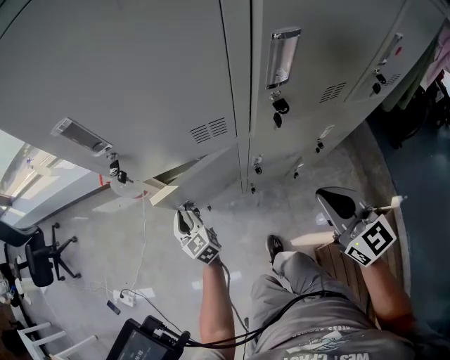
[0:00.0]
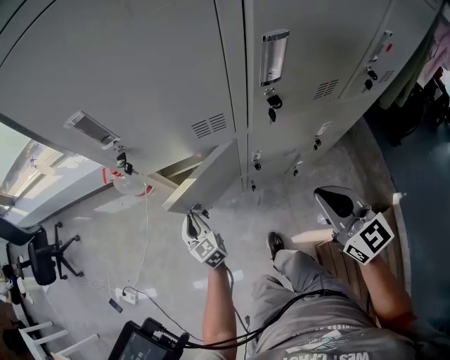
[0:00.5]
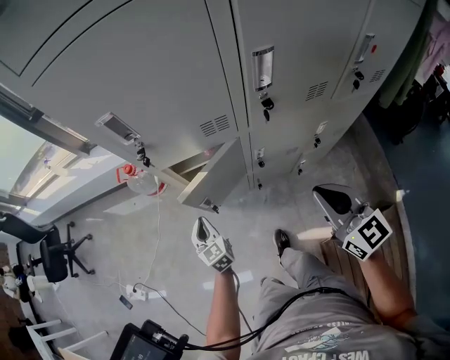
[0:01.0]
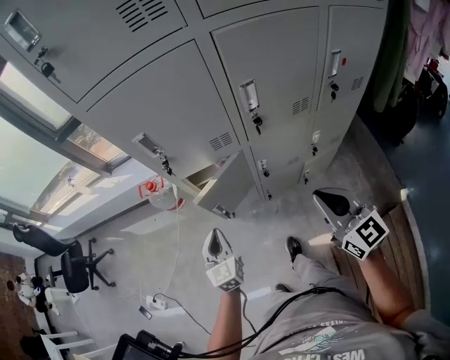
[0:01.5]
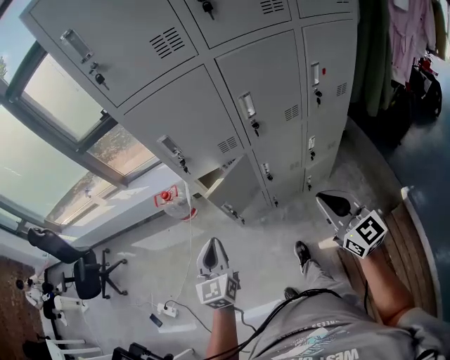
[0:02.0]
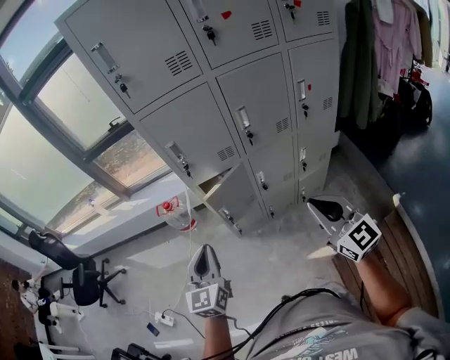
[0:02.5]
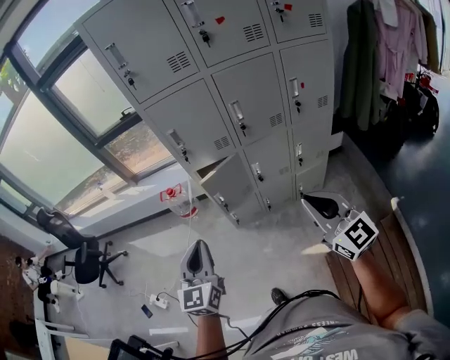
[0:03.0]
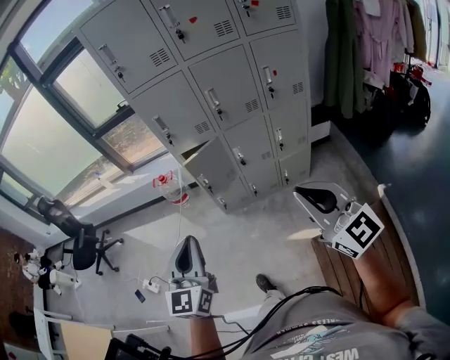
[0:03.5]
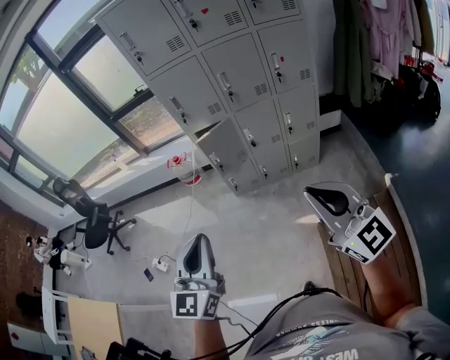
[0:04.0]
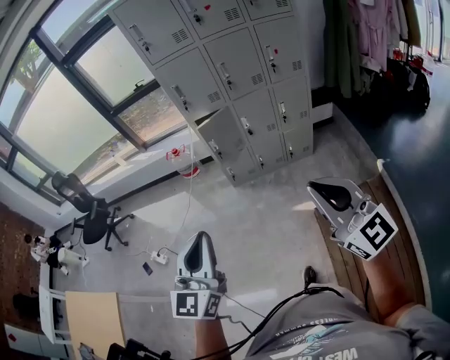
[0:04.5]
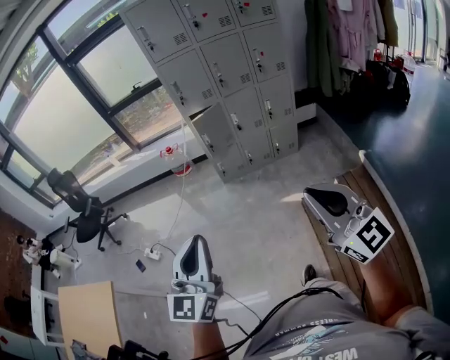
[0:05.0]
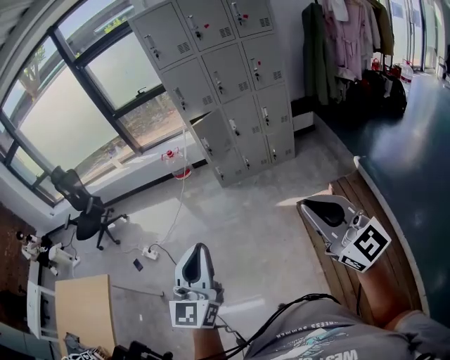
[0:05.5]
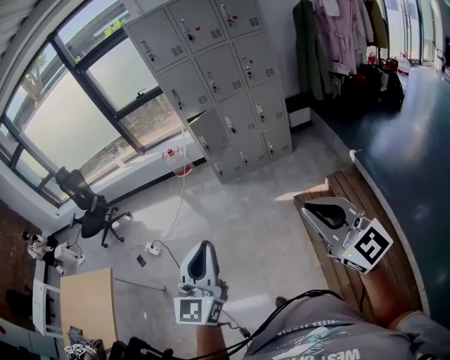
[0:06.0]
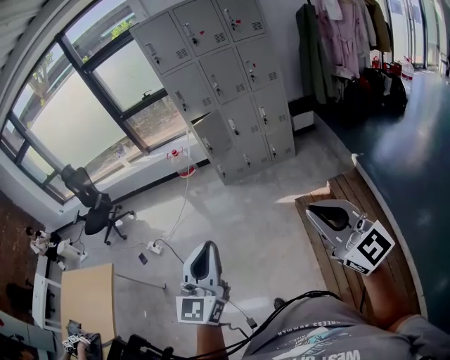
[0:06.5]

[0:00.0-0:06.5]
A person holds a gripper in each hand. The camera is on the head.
0:00.0 to 0:02.0: The left gripper travels upward and backward by approximately 40 cm, turns by approximately 30 degrees, and closes its fingers. Meanwhile the right gripper heads backward and upward, covering about 25 cm.
0:02.0 to 0:04.5: The pair of grippers is taken backward, about 60 cm.
0:04.5 to 0:06.5: The grippers both shift backward by about 35 cm.

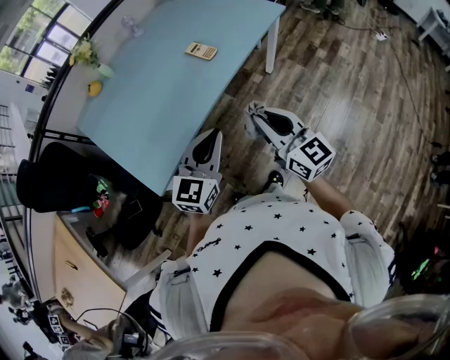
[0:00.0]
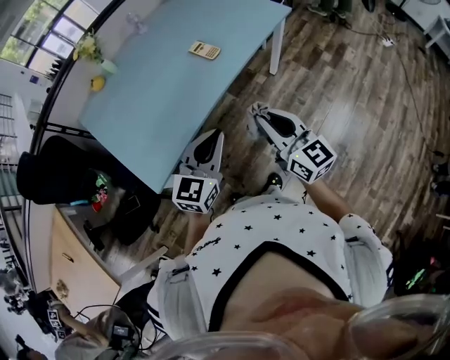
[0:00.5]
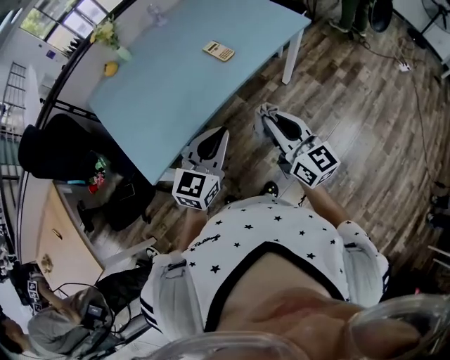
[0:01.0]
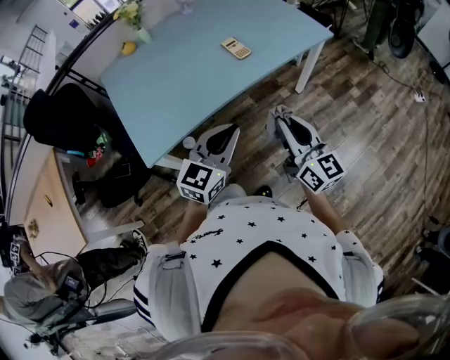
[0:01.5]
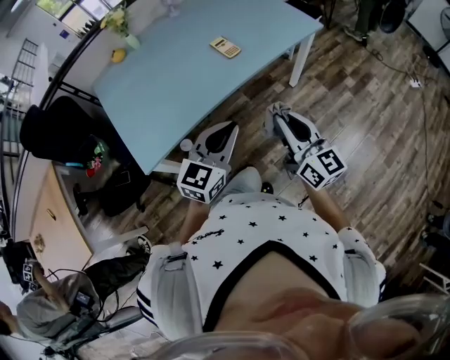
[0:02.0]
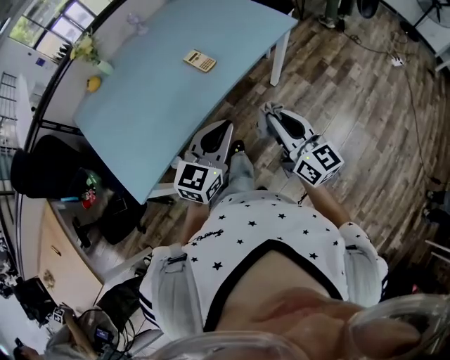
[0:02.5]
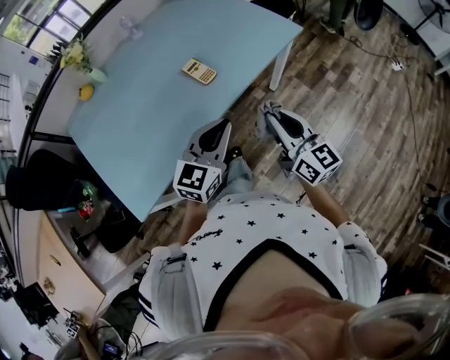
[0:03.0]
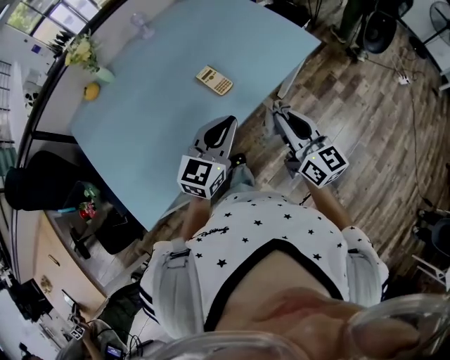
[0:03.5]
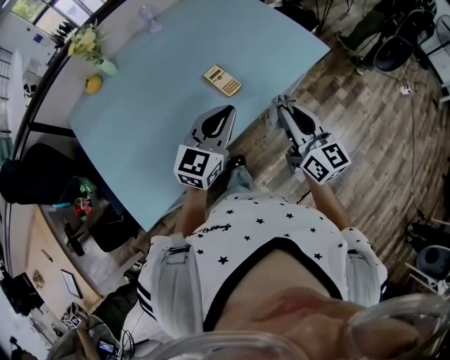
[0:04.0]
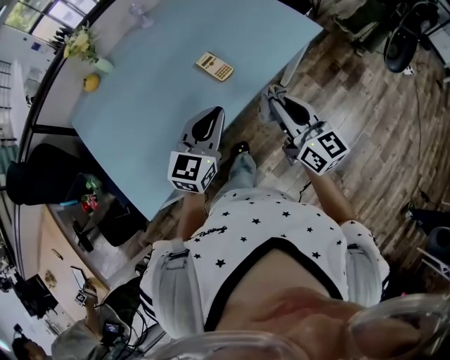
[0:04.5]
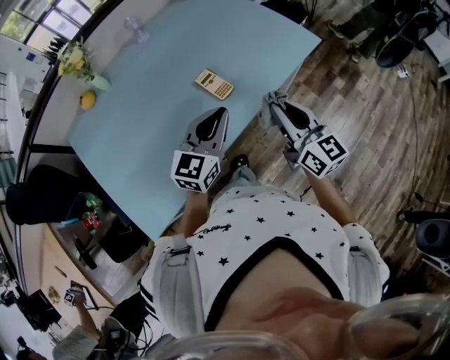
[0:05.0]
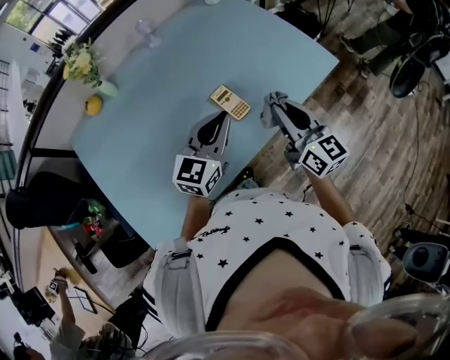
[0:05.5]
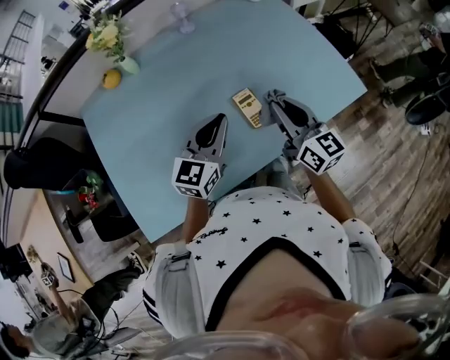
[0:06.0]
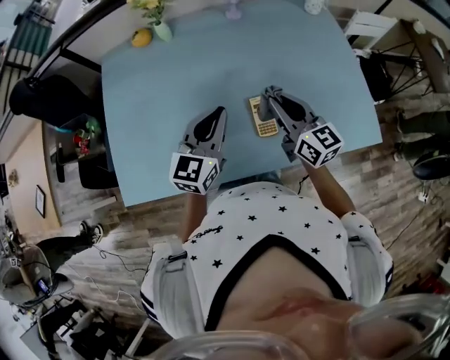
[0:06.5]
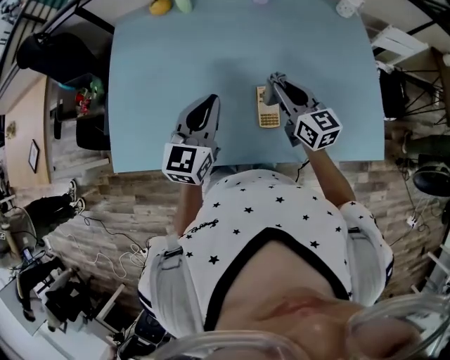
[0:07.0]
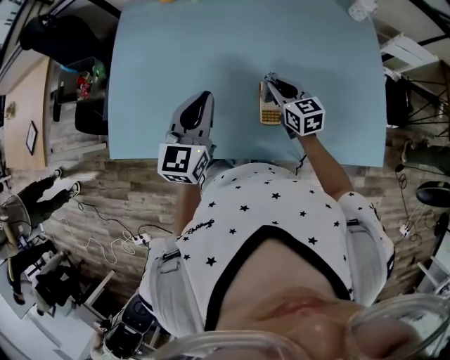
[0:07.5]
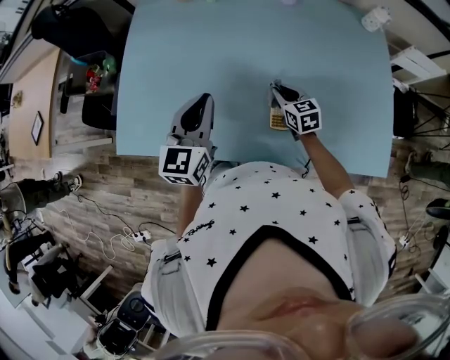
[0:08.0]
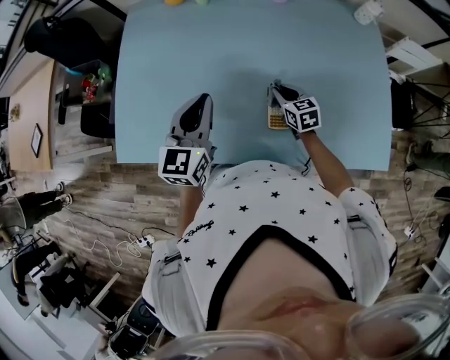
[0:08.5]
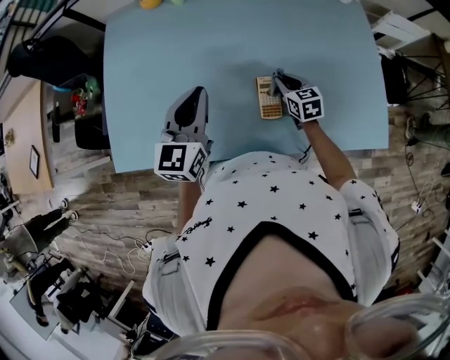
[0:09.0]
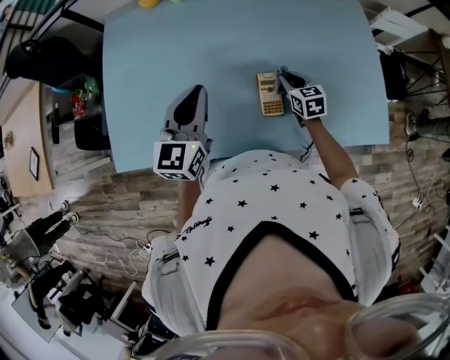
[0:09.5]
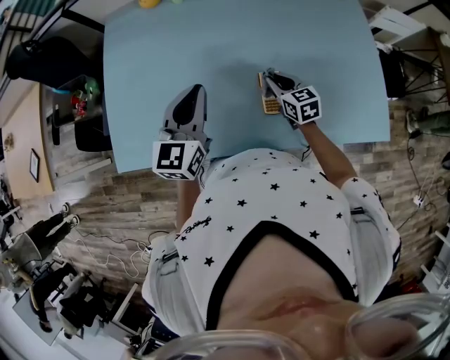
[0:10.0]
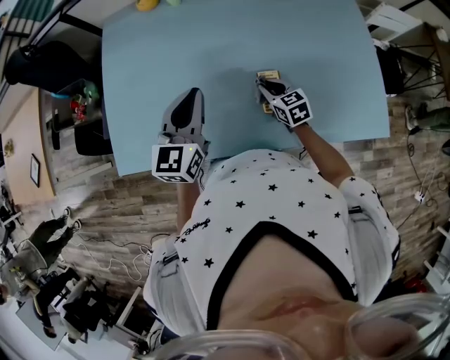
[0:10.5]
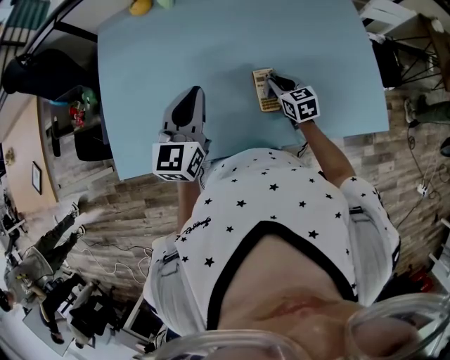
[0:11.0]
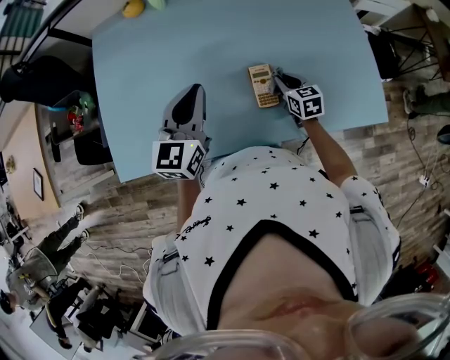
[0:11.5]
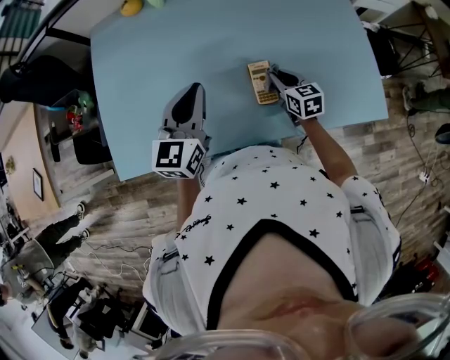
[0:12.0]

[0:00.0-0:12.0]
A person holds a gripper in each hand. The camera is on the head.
0:00.0 to 0:02.0: Both grippers travel together to the right, about 5 cm.
0:02.0 to 0:04.0: The two grippers go about 25 cm forward.
0:04.0 to 0:06.0: Both grippers travel together forward and to the left, roughly 15 cm.
0:06.0 to 0:08.0: The right gripper travels downward by some 20 cm, and tilts its fingers approximately 30 degrees downward, while the left gripper changes place by approximately 10 cm, and swivels some 40 degrees.
0:10.0 to 0:12.0: The right gripper shifts by about 5 cm.

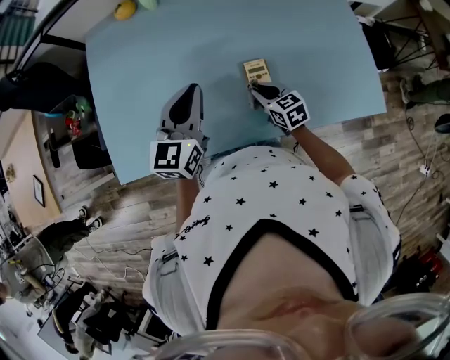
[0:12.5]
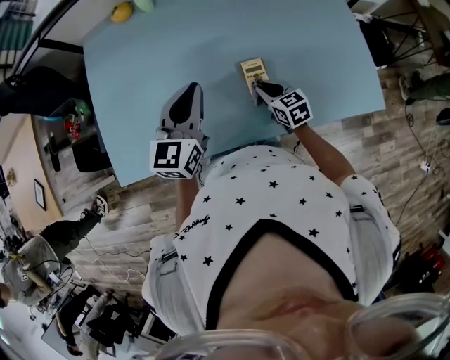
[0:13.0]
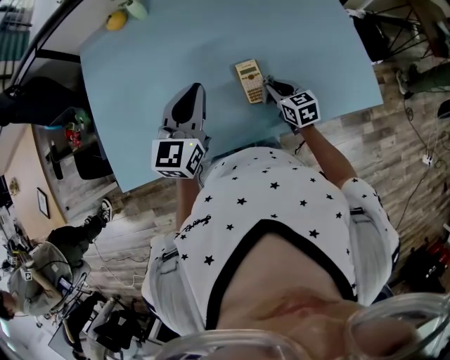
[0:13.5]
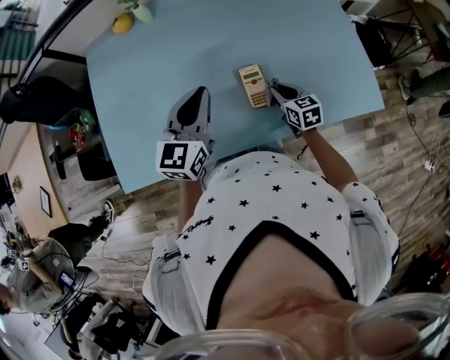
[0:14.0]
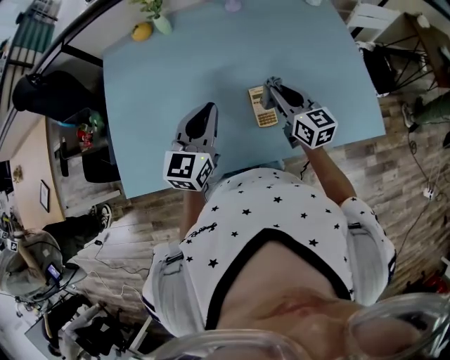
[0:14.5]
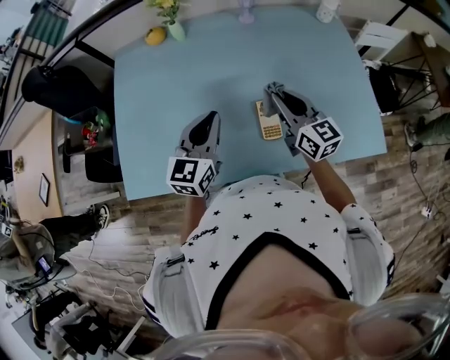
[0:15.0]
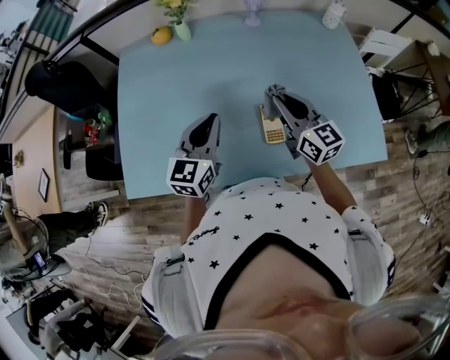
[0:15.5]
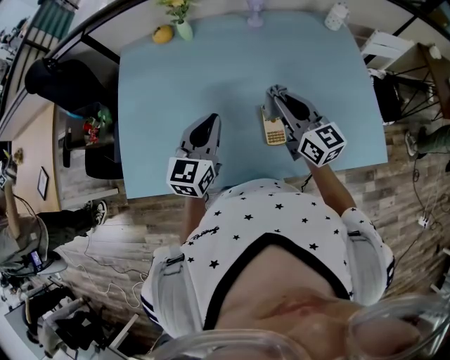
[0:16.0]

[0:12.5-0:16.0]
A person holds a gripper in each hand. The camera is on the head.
0:12.5 to 0:14.5: The right gripper moves upward, roughly 15 cm, and swivels approximately 30 degrees.
0:14.5 to 0:16.0: The right gripper heads upward, covering approximately 5 cm.

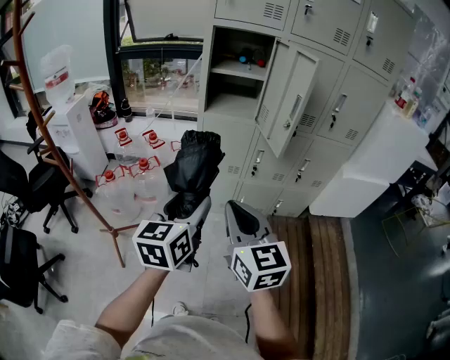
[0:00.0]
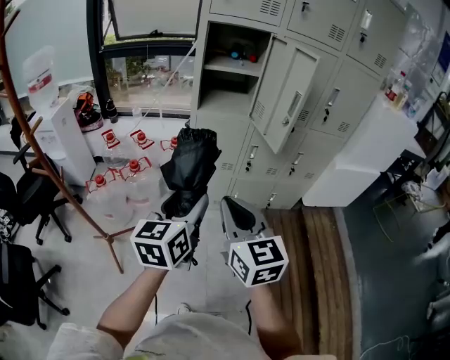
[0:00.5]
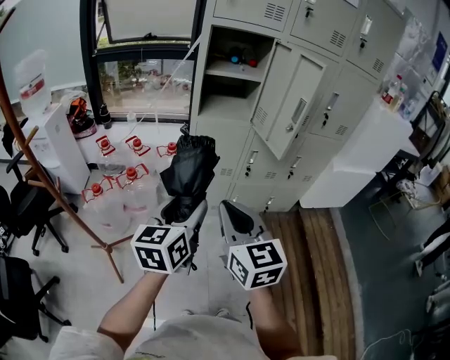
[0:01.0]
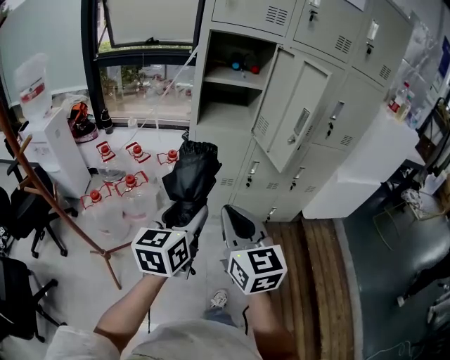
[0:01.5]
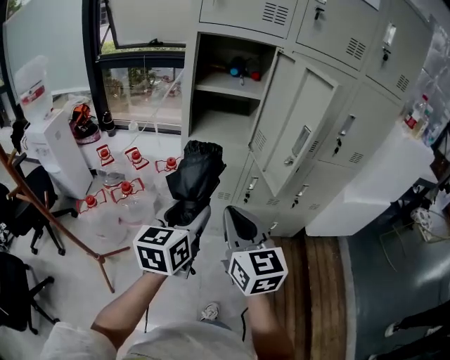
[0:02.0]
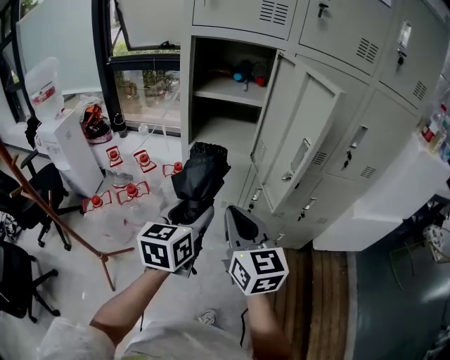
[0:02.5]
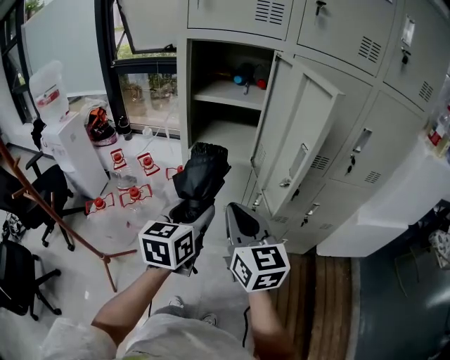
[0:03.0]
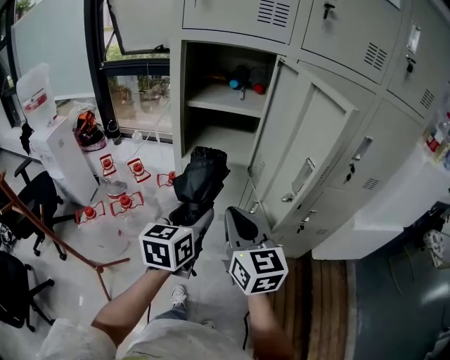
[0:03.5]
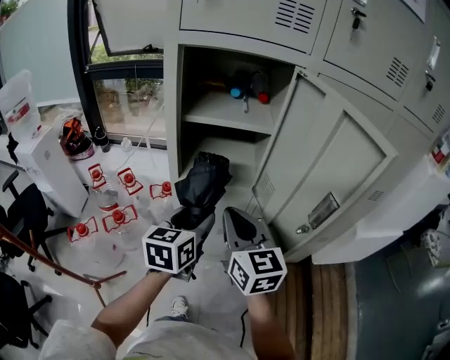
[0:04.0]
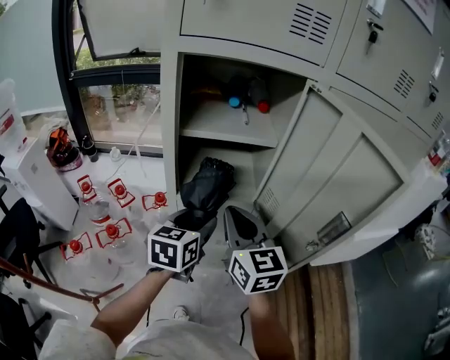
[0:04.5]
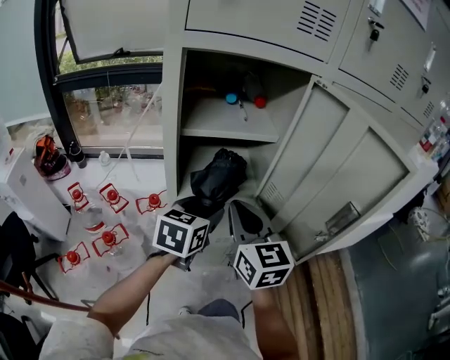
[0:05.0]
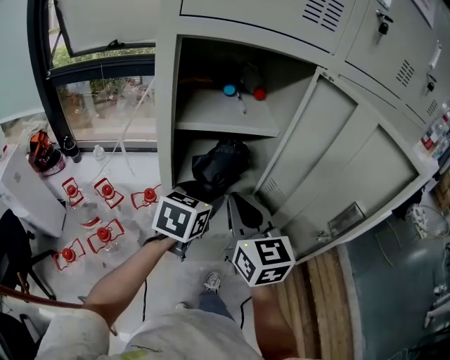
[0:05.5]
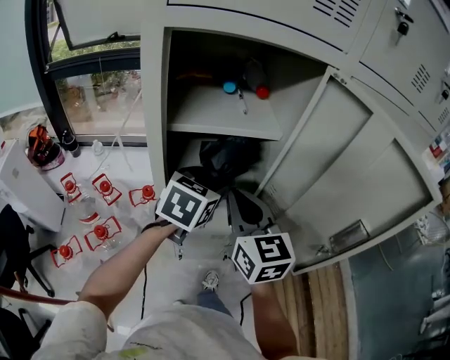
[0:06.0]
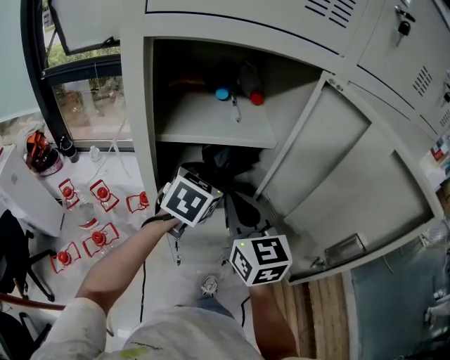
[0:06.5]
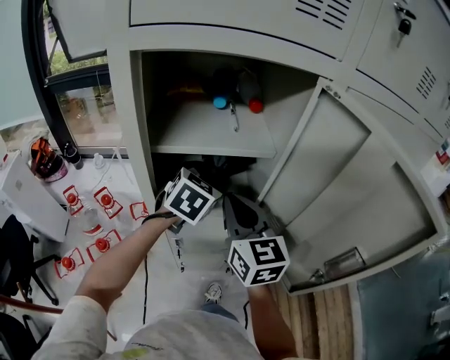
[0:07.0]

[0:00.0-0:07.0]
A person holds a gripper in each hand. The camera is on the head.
0:00.0 to 0:02.0: The grippers both shift forward by approximately 20 cm.
0:02.0 to 0:03.5: The right gripper goes roughly 10 cm forward; the left gripper travels forward and to the right by roughly 15 cm.
0:03.5 to 0:05.0: The left gripper shifts roughly 15 cm forward, and swivels approximately 20 degrees; the right gripper shifts roughly 15 cm forward and to the left.
0:05.0 to 0:07.0: The right gripper travels forward by roughly 10 cm, while the left gripper shifts approximately 15 cm forward, and swivels approximately 20 degrees.
